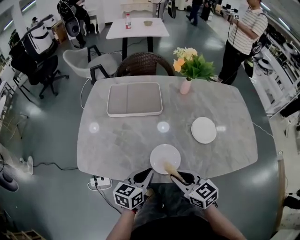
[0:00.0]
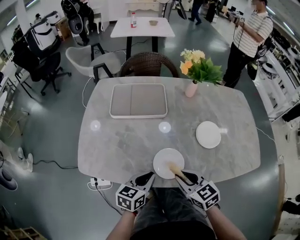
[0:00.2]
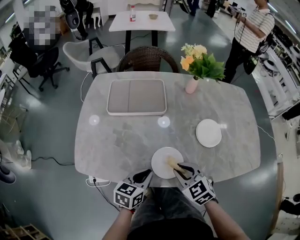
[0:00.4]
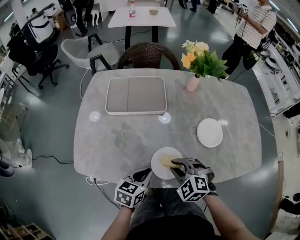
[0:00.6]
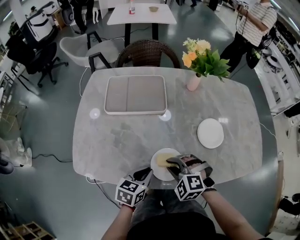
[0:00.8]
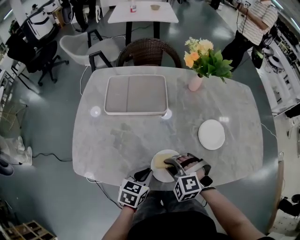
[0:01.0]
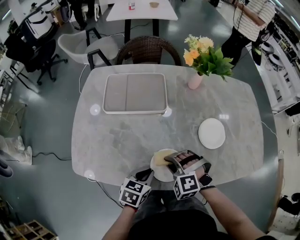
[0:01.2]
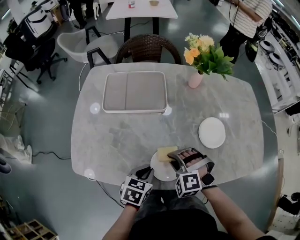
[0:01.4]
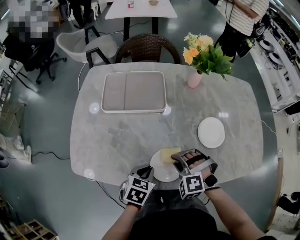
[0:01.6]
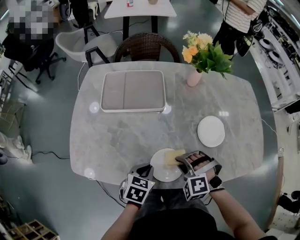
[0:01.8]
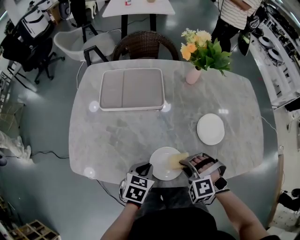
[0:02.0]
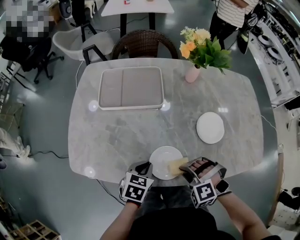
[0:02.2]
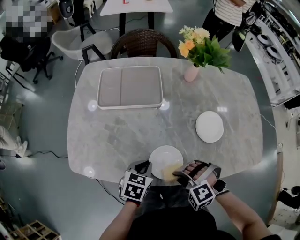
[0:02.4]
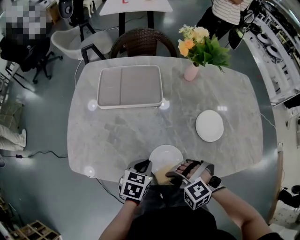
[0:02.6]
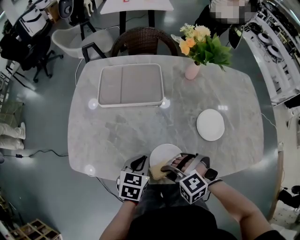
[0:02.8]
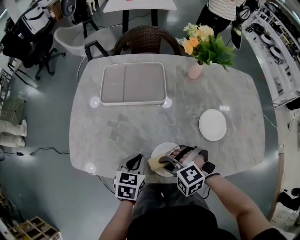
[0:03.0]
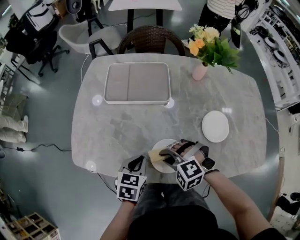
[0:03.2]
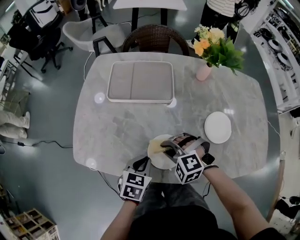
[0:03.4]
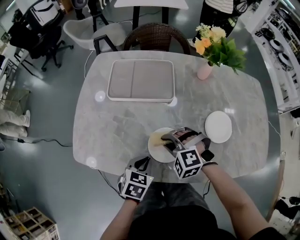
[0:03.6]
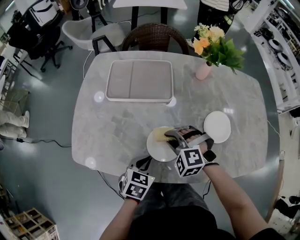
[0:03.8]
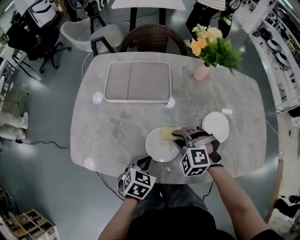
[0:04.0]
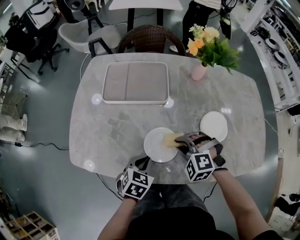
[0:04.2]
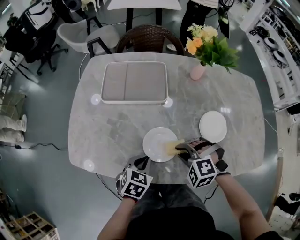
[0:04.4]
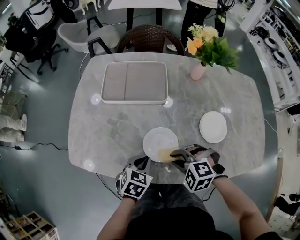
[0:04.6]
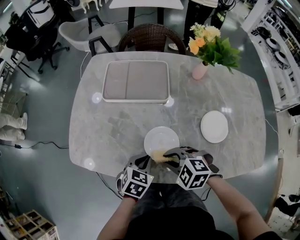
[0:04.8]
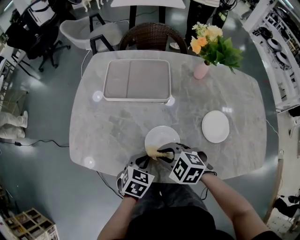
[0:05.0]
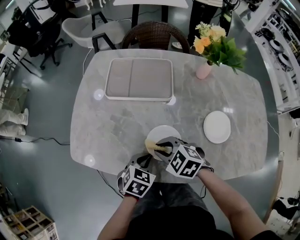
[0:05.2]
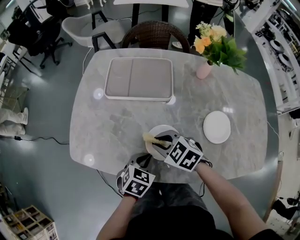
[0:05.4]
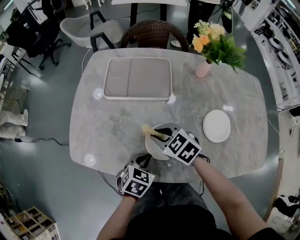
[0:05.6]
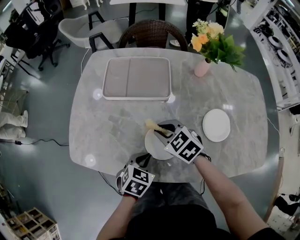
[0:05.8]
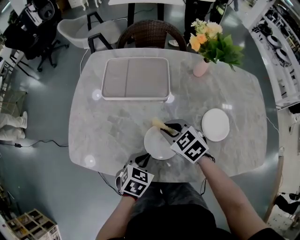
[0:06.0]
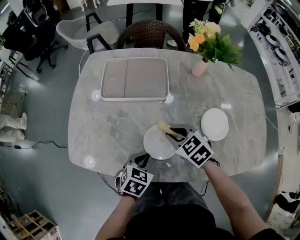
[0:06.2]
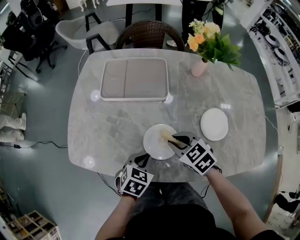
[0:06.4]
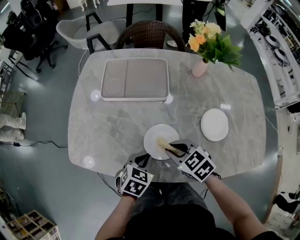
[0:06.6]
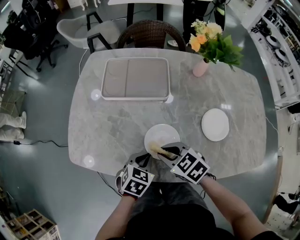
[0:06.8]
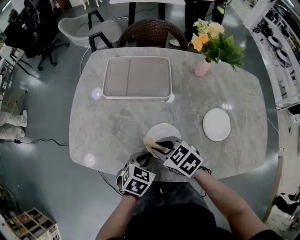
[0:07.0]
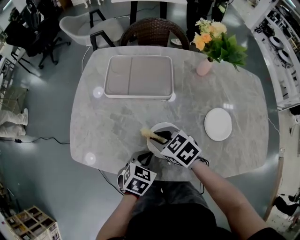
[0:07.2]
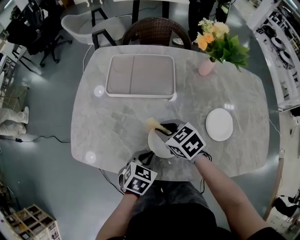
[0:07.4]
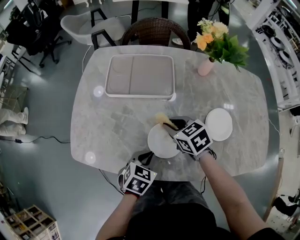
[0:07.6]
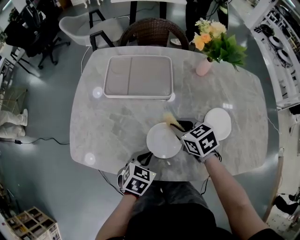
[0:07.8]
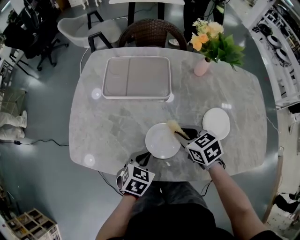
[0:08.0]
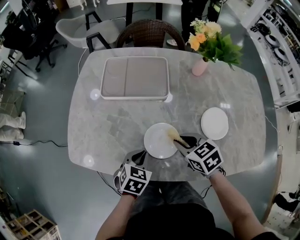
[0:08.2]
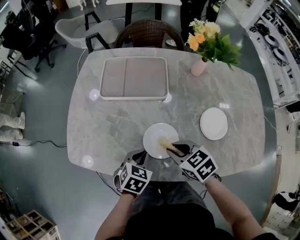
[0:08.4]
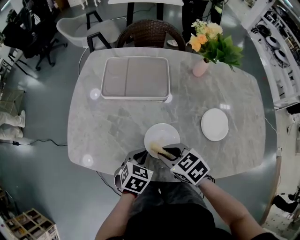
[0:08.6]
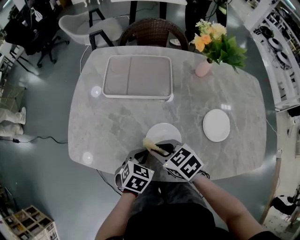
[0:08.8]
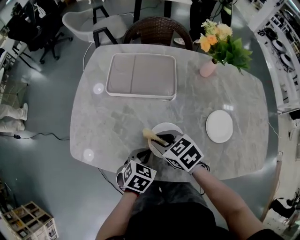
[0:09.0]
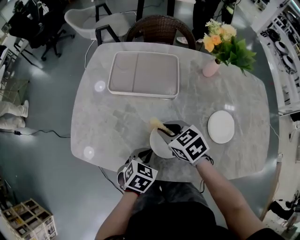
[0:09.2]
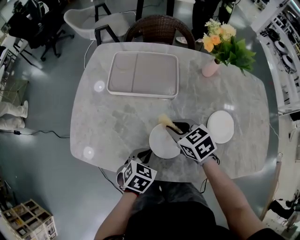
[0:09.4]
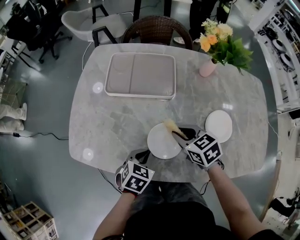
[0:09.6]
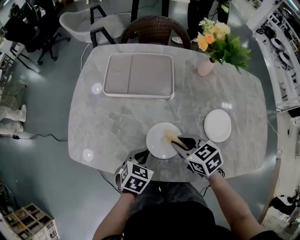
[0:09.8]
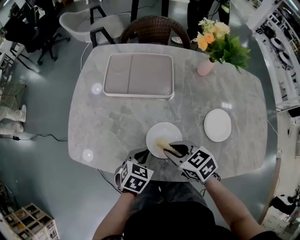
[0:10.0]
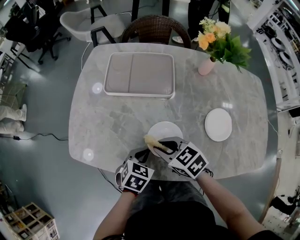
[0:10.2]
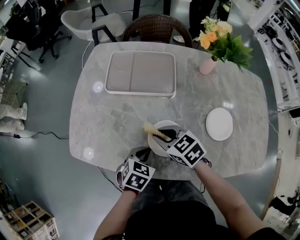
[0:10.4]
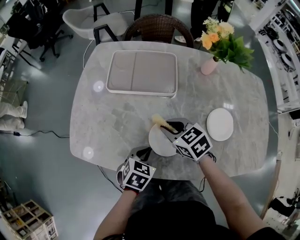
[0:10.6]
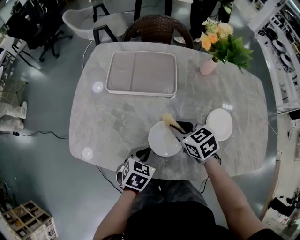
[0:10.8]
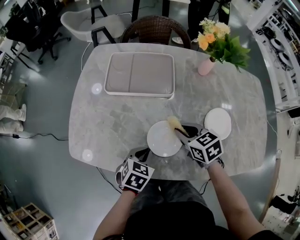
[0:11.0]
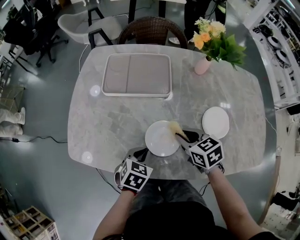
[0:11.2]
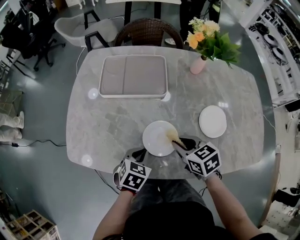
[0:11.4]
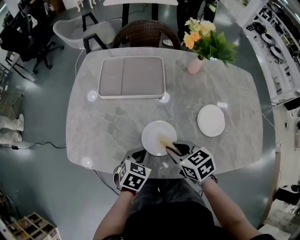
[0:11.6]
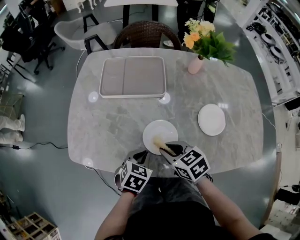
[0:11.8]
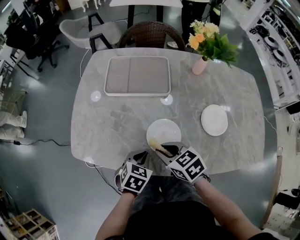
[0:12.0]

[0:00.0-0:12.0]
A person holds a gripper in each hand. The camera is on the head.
0:00.0 to 0:01.6: The right gripper moves forward and downward, about 10 cm, and rolls counterclockwise, seen from behind, by roughly 70 degrees. The left gripper heads downward, covering about 5 cm, and swivels roughly 30 degrees.
0:01.6 to 0:03.0: The right gripper changes place by approximately 5 cm, and turns by about 30 degrees. Meanwhile the left gripper changes place by roughly 5 cm.
0:03.0 to 0:04.4: The right gripper heads to the right, covering some 10 cm.
0:04.4 to 0:06.0: The right gripper goes about 10 cm forward, and twists some 50 degrees clockwise, seen from behind.
0:06.0 to 0:07.6: The right gripper reaches approximately 10 cm backward, then returns.
0:07.6 to 0:09.0: The right gripper is displaced to the left and backward by some 10 cm.
0:09.0 to 0:10.4: The right gripper travels to the right and back again, about 10 cm each way.
0:10.4 to 0:12.0: The right gripper goes roughly 5 cm backward, and moves some 10 cm to the right and comes back.

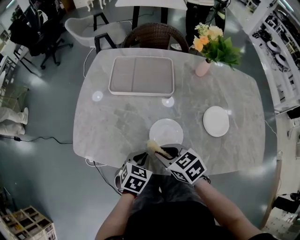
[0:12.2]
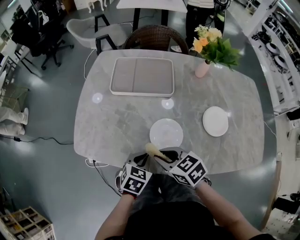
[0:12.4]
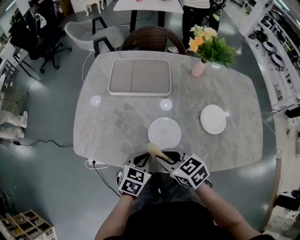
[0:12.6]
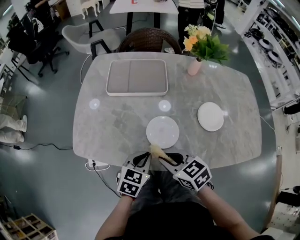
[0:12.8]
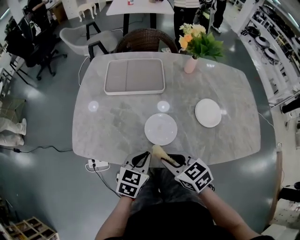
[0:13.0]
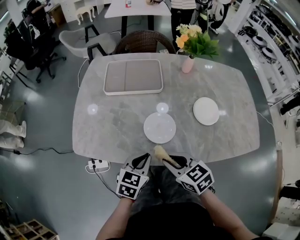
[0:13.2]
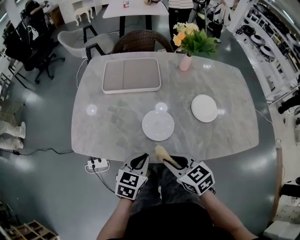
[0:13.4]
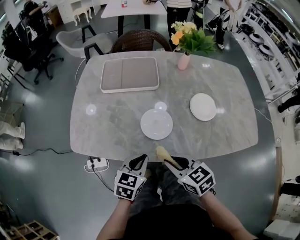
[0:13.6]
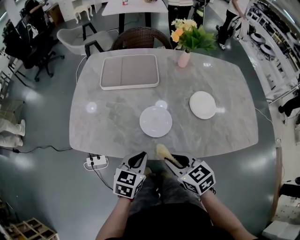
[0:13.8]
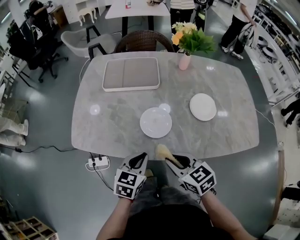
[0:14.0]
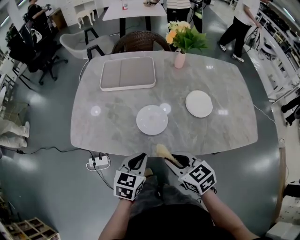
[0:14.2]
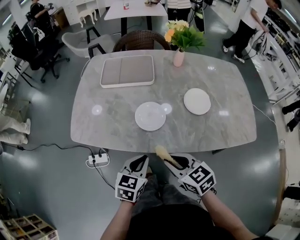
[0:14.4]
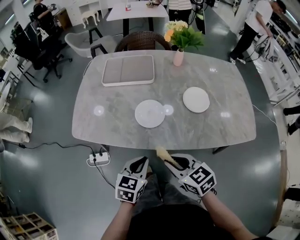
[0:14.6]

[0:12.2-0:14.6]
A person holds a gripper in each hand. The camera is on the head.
0:12.2 to 0:13.4: The left gripper goes approximately 10 cm upward and backward; the right gripper travels backward by roughly 10 cm.
0:13.4 to 0:14.6: Both grippers travel together backward, about 10 cm.

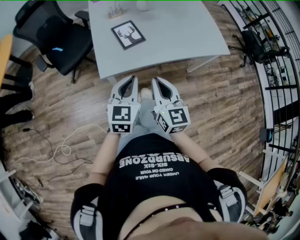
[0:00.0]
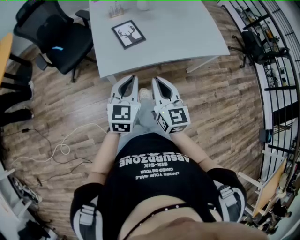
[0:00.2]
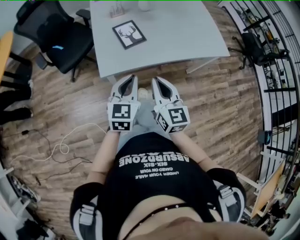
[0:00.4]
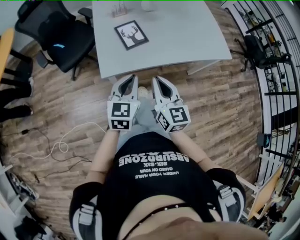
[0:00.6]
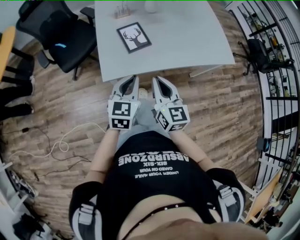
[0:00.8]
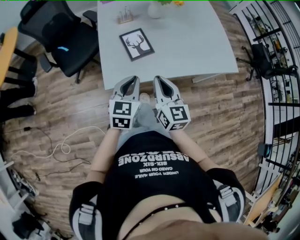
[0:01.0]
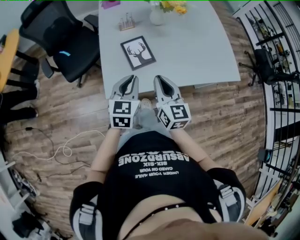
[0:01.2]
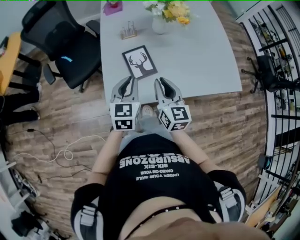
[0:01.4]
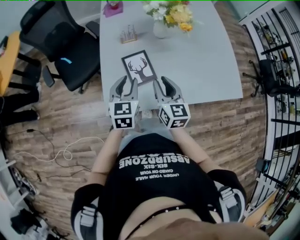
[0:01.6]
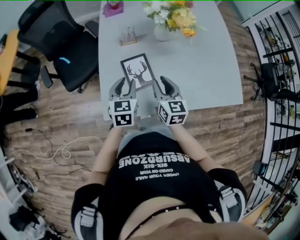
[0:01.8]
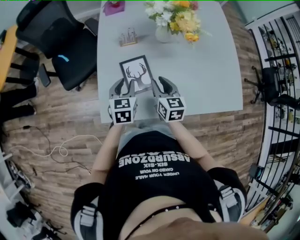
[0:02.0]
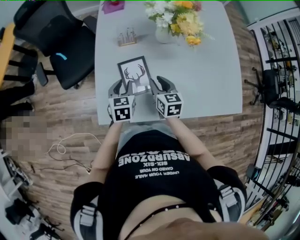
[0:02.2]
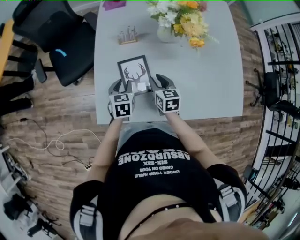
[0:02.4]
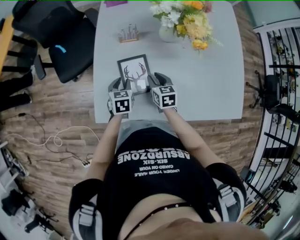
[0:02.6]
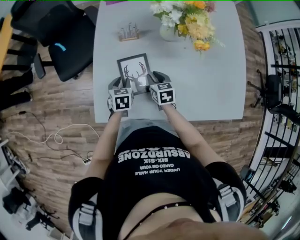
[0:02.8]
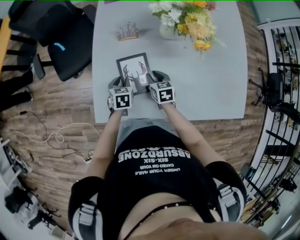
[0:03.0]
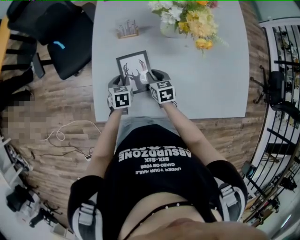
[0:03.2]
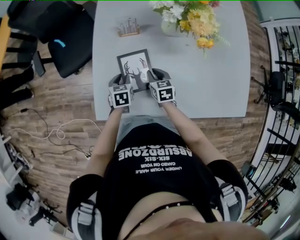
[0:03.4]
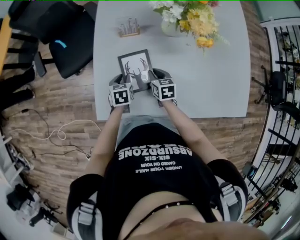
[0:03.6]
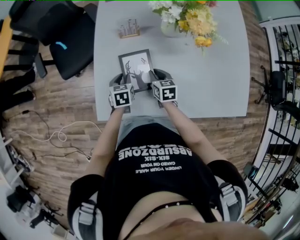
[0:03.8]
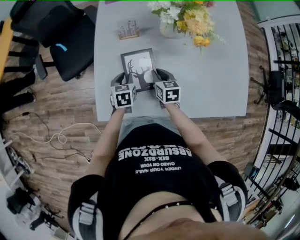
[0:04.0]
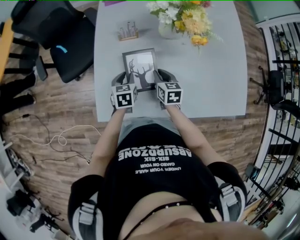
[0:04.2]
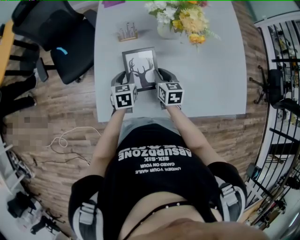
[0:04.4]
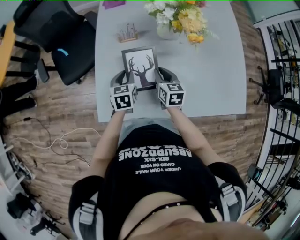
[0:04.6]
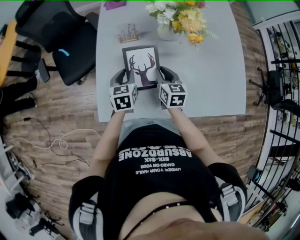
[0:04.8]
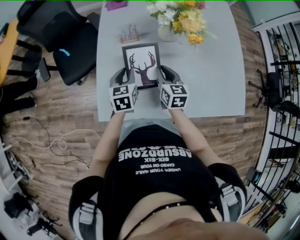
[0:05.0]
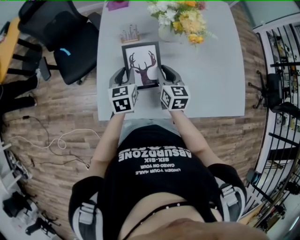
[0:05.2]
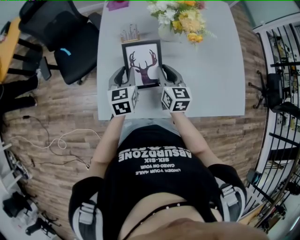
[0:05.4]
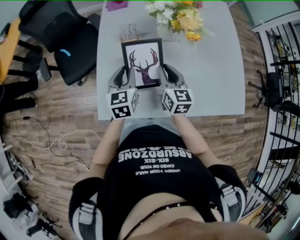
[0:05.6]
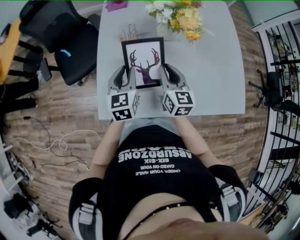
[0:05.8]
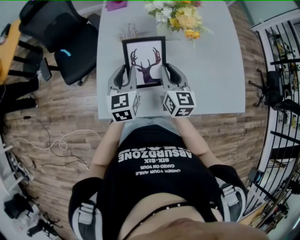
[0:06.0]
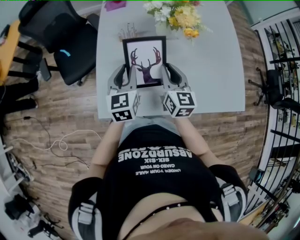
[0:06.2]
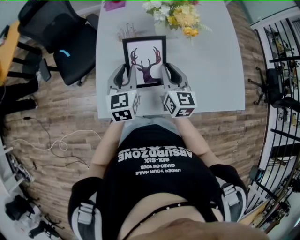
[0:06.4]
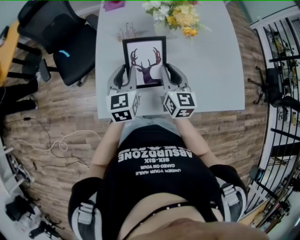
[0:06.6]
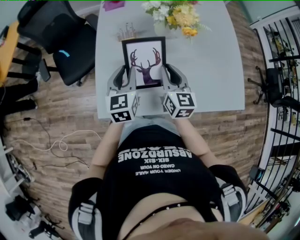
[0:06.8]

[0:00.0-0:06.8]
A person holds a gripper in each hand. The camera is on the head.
0:00.0 to 0:01.4: Both grippers travel together forward, some 20 cm.
0:01.4 to 0:02.8: The grippers both shift downward and forward by roughly 30 cm. The left gripper rotates about 30 degrees, and opens its fingers, while the right gripper angles its fingers downward, by about 30 degrees.
0:02.8 to 0:04.0: There are only small adjustments of the grippers.
0:04.0 to 0:05.4: Both grippers move upward, about 15 cm. The right gripper rotates approximately 20 degrees. The left gripper turns by approximately 20 degrees.
0:05.4 to 0:06.8: Both grippers move upward, about 5 cm.

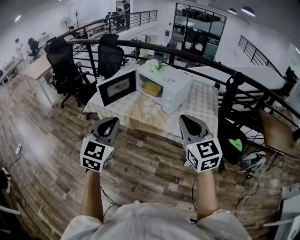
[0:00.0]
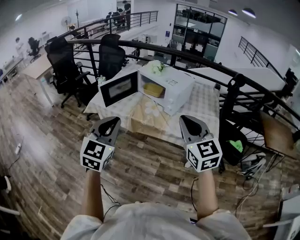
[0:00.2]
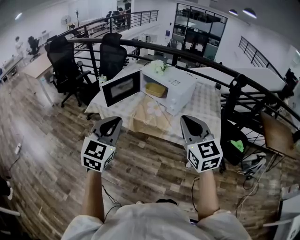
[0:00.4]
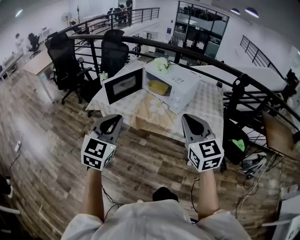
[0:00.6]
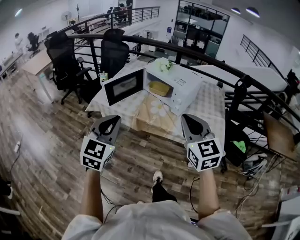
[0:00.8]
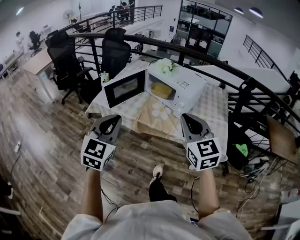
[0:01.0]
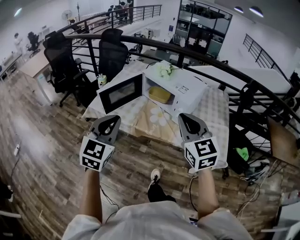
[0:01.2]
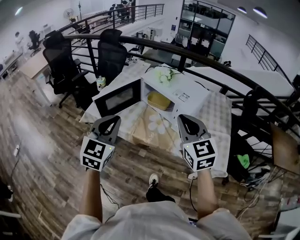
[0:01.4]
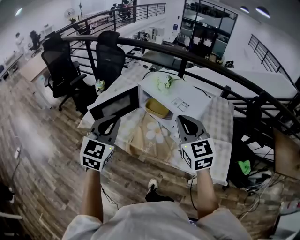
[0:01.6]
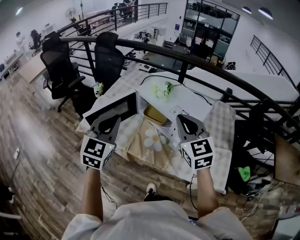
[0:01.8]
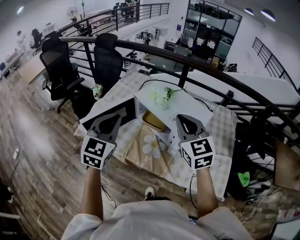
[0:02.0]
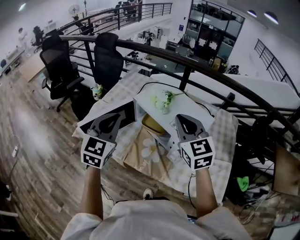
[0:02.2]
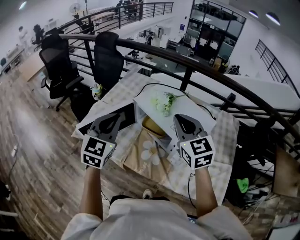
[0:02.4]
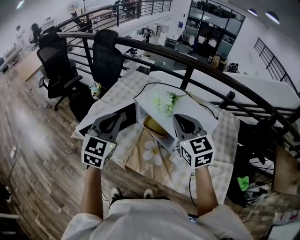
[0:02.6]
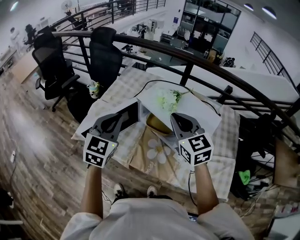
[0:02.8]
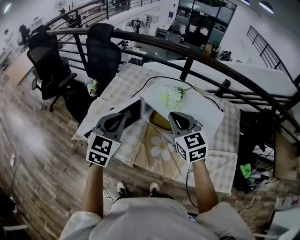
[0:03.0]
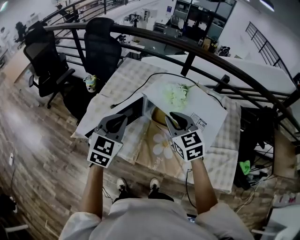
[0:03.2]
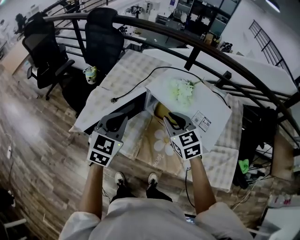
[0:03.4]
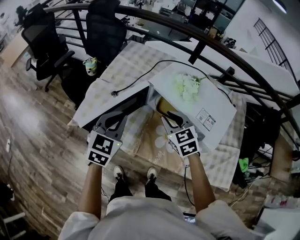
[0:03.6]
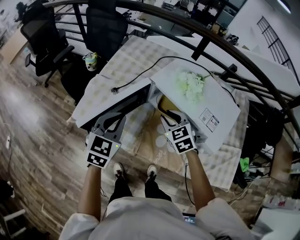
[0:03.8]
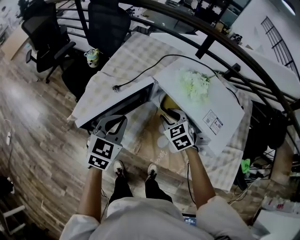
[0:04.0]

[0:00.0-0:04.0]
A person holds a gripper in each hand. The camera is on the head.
0:00.0 to 0:01.4: Both grippers move forward, about 25 cm.
0:01.4 to 0:02.6: Both grippers travel together forward, roughly 25 cm.
0:02.6 to 0:04.0: The left gripper moves downward and to the left, about 20 cm; the right gripper moves downward and to the left, some 30 cm, turns by approximately 30 degrees, and opens up.
